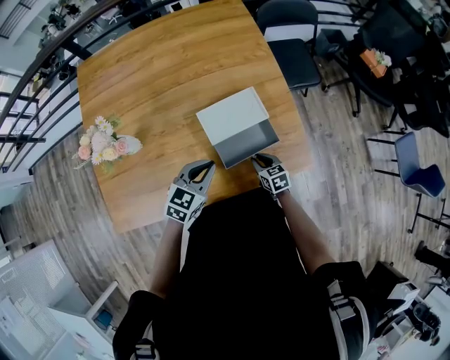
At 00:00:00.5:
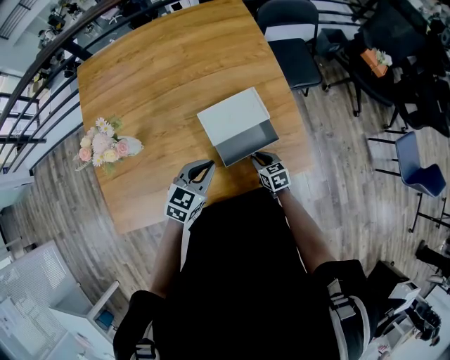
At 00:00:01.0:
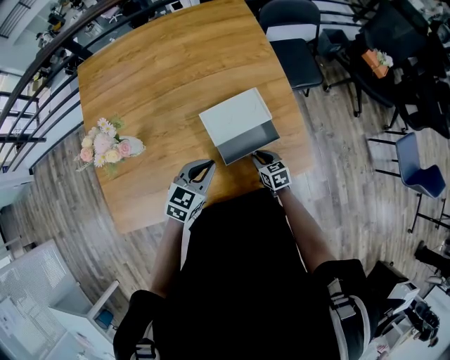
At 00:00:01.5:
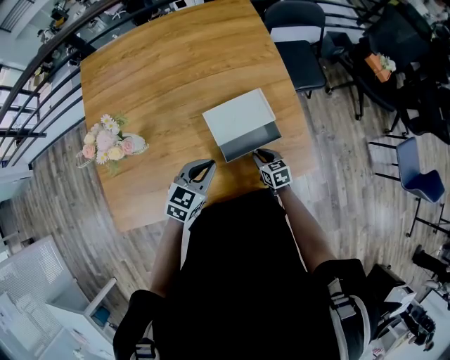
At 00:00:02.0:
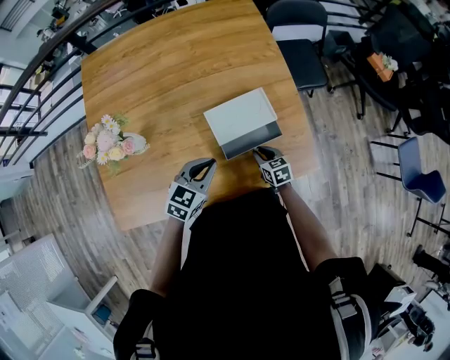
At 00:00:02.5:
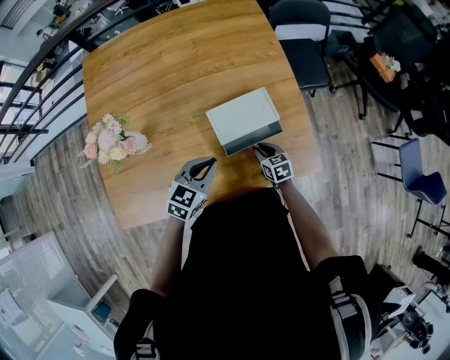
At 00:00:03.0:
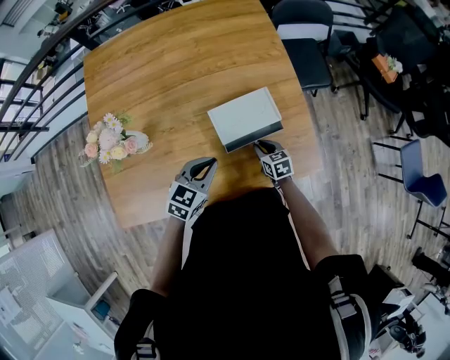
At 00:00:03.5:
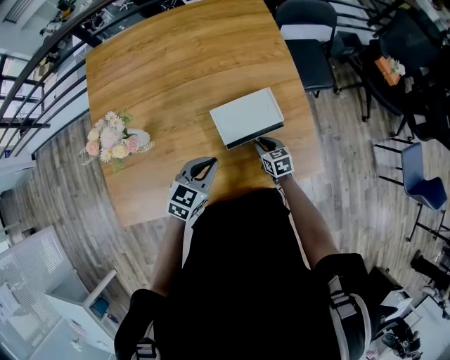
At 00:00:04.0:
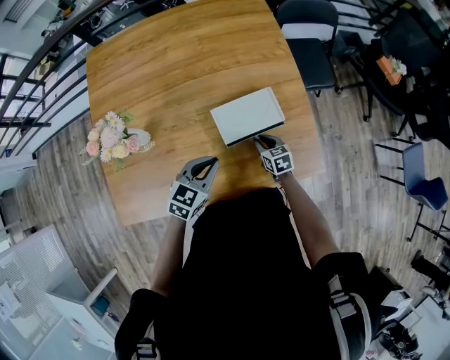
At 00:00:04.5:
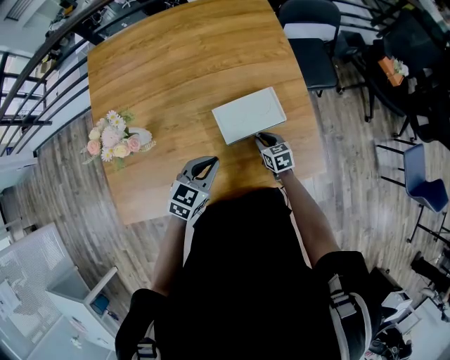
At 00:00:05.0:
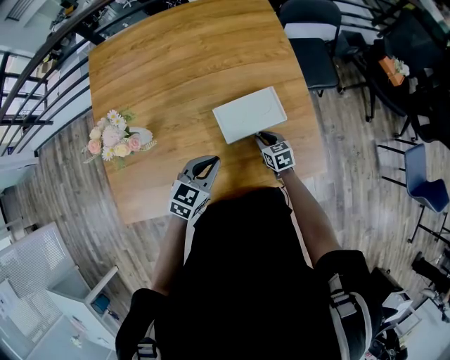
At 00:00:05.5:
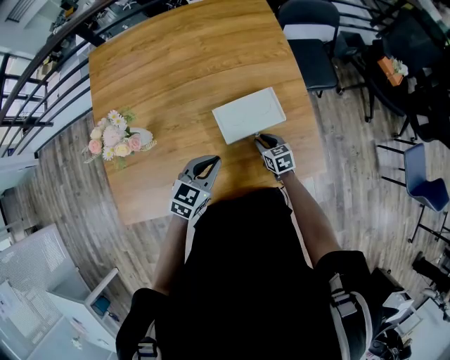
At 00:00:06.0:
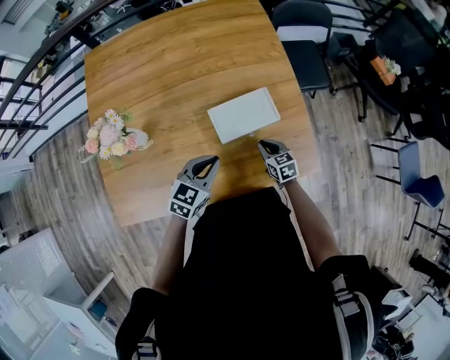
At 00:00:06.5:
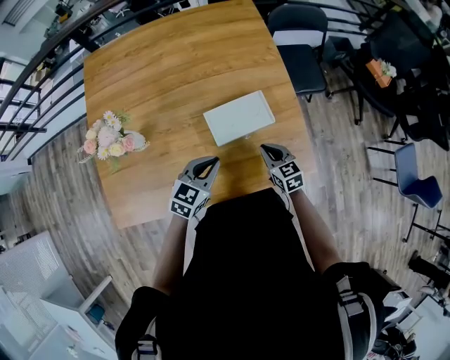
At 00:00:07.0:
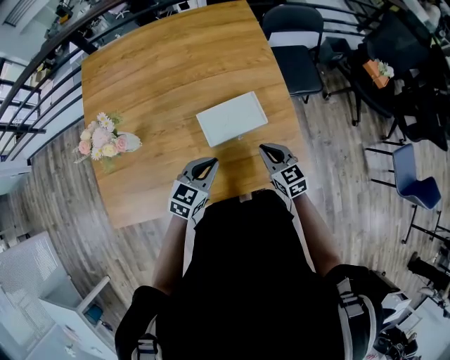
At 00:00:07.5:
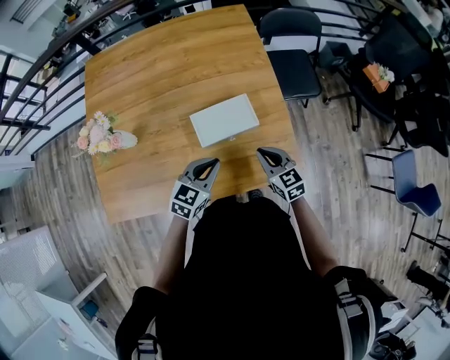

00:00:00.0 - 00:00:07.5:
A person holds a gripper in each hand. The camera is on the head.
00:00:00.0 - 00:00:02.0: There are only small adjustments of the grippers.
00:00:02.0 - 00:00:04.0: The right gripper shifts by approximately 5 cm.
00:00:04.0 - 00:00:05.5: Both grippers stay put.
00:00:05.5 - 00:00:07.5: The right gripper is displaced upward and to the right by about 20 cm, rotates some 20 degrees, and closes, while the left gripper moves to the right, roughly 10 cm.

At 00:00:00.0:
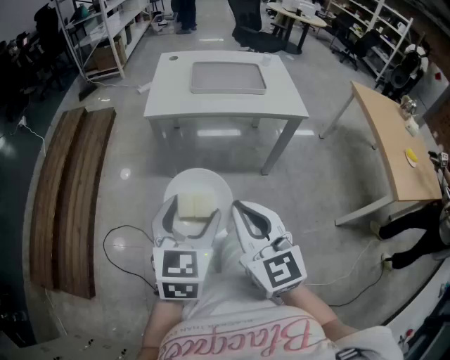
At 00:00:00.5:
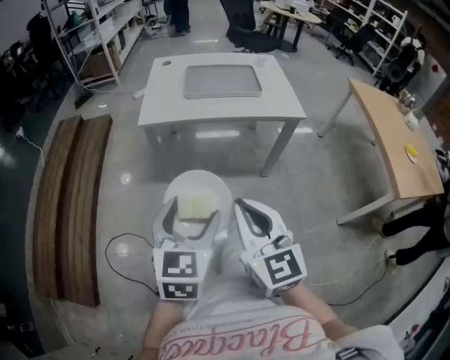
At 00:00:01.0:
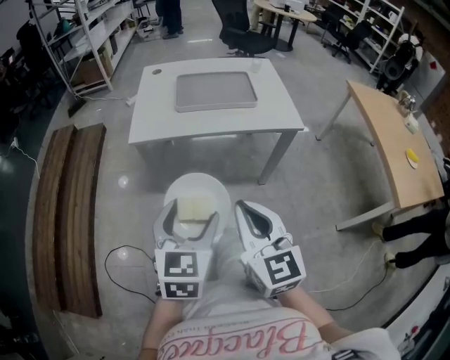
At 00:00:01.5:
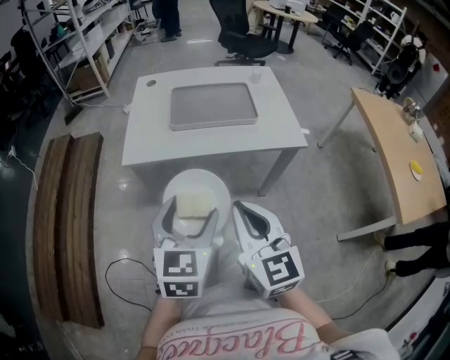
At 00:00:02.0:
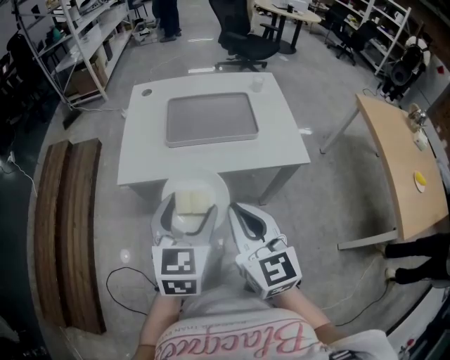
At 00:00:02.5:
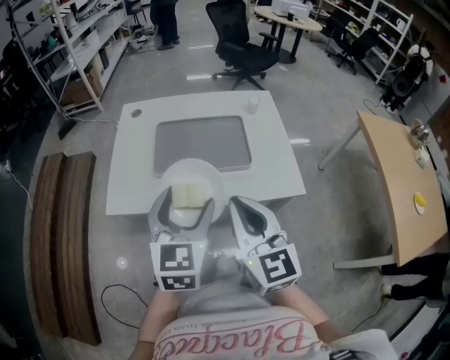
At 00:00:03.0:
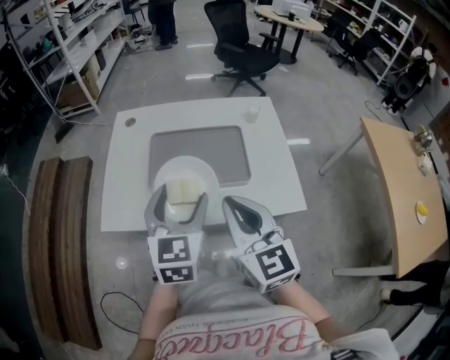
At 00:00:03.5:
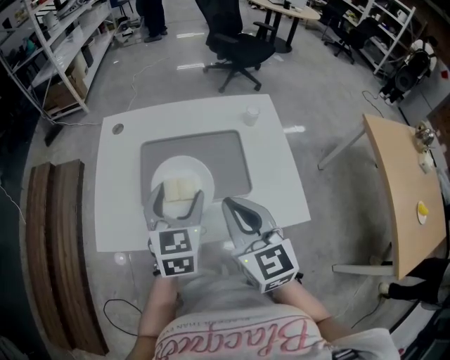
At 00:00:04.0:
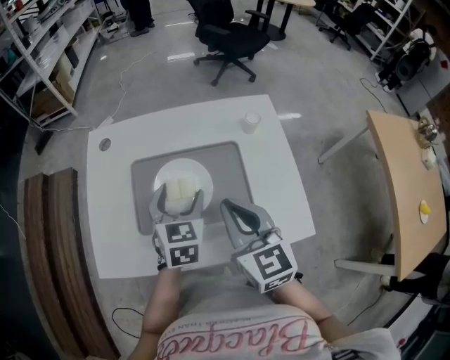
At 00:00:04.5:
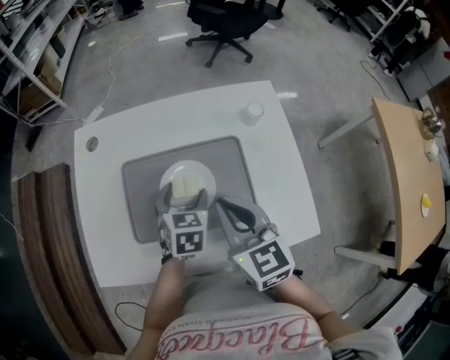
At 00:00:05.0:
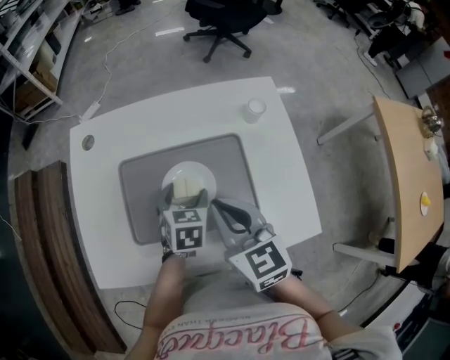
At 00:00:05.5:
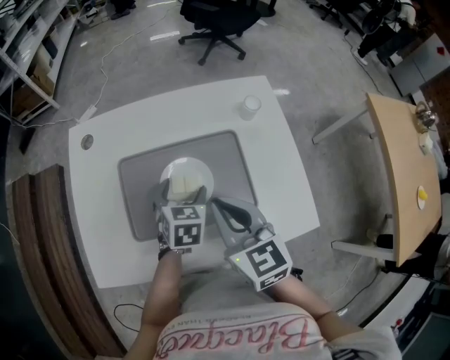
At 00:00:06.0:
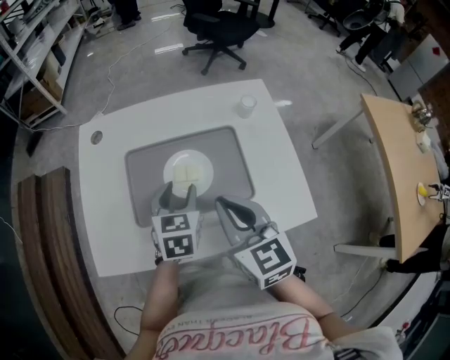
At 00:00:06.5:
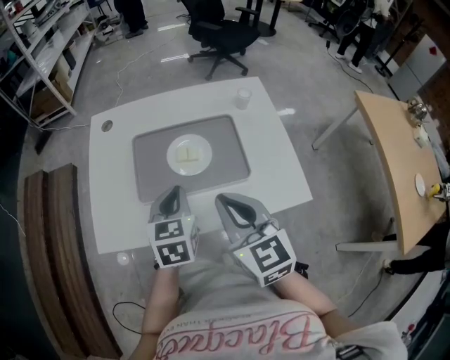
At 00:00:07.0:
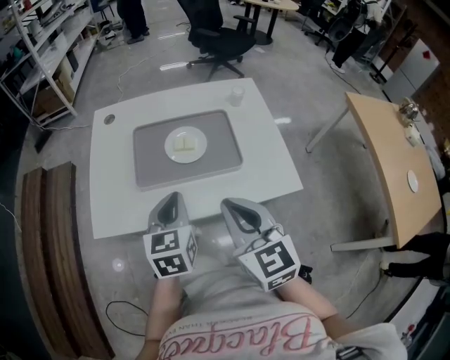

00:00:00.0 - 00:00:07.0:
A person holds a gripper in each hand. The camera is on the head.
00:00:00.0 - 00:00:02.0: The two grippers go some 20 cm forward.
00:00:02.0 - 00:00:03.5: The grippers both shift forward by about 20 cm.
00:00:03.5 - 00:00:05.0: The left gripper goes approximately 20 cm downward and forward, and swivels about 30 degrees; the right gripper heads forward and downward, covering some 10 cm.
00:00:05.0 - 00:00:07.0: The left gripper is displaced backward, upward and to the left by approximately 20 cm, changes its angle by some 20 degrees, and closes up. Meanwhile the right gripper shifts some 15 cm backward.

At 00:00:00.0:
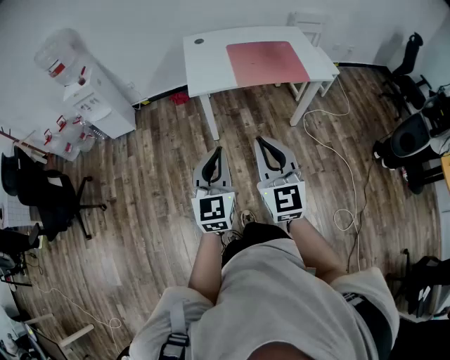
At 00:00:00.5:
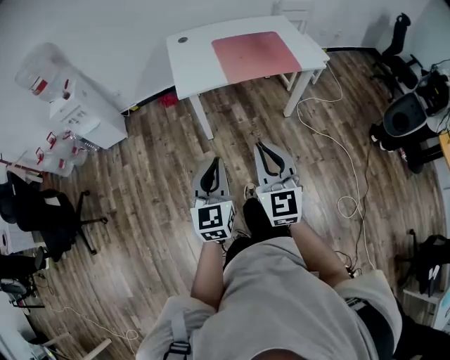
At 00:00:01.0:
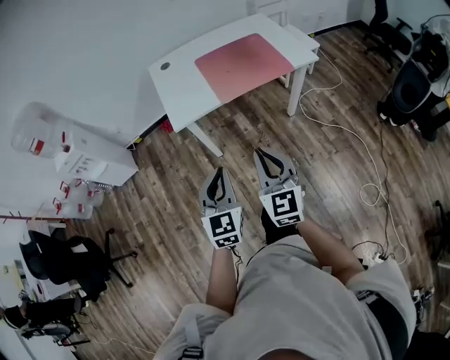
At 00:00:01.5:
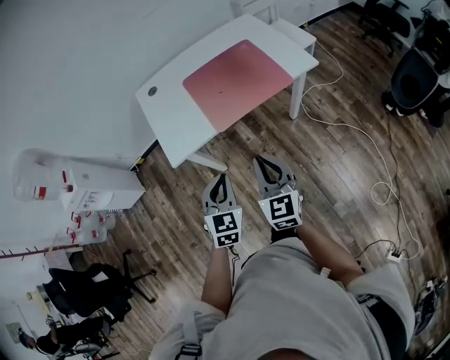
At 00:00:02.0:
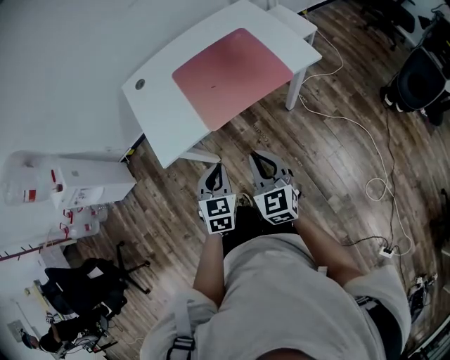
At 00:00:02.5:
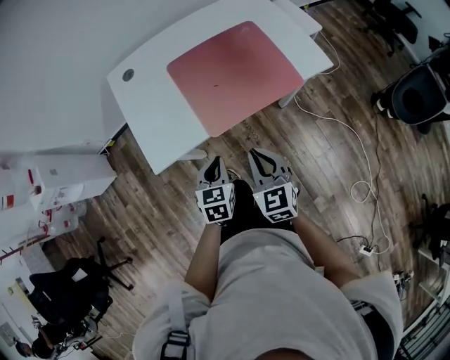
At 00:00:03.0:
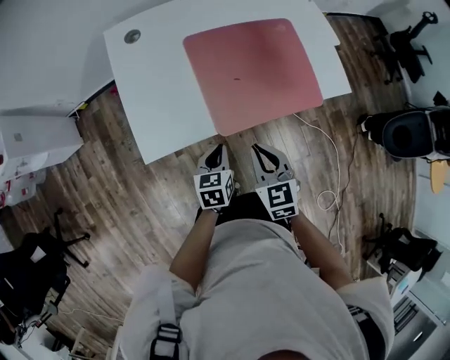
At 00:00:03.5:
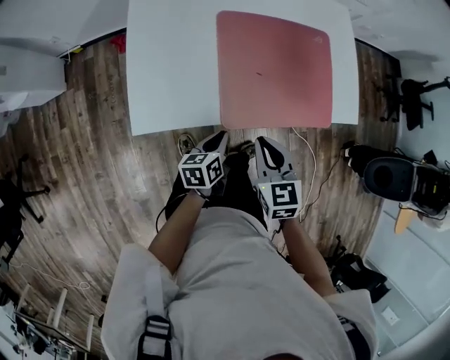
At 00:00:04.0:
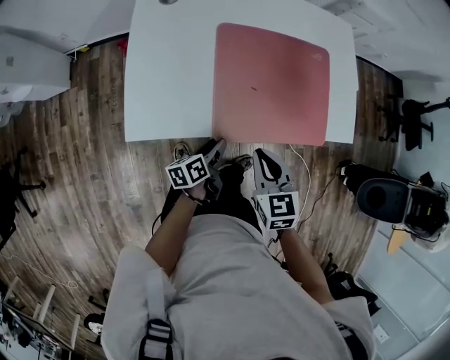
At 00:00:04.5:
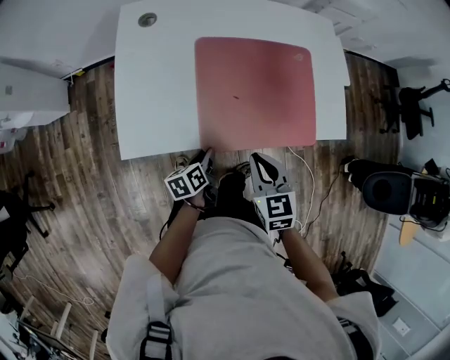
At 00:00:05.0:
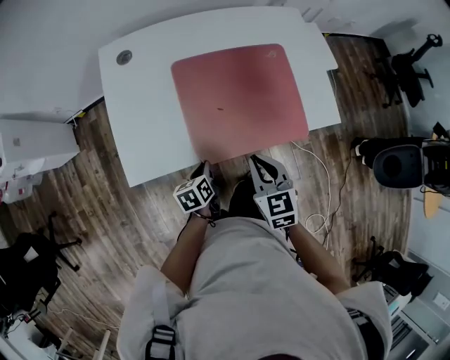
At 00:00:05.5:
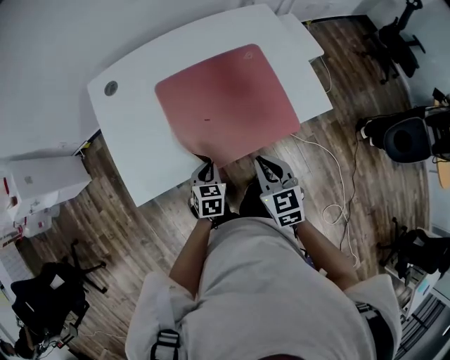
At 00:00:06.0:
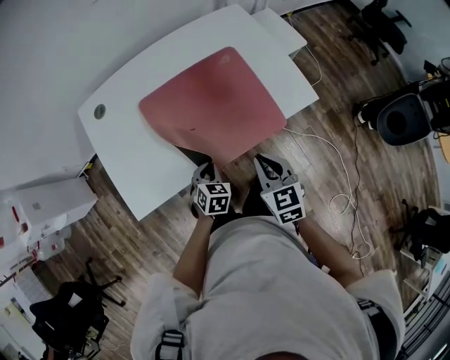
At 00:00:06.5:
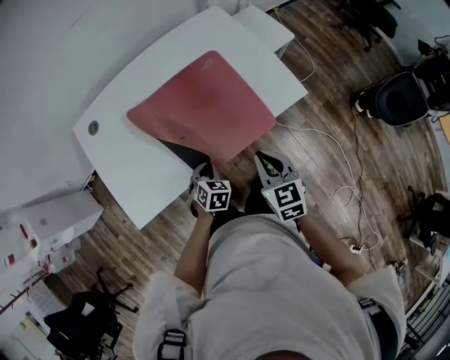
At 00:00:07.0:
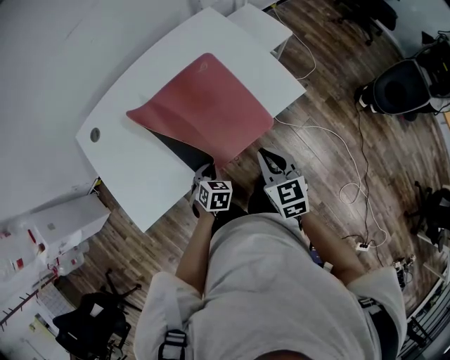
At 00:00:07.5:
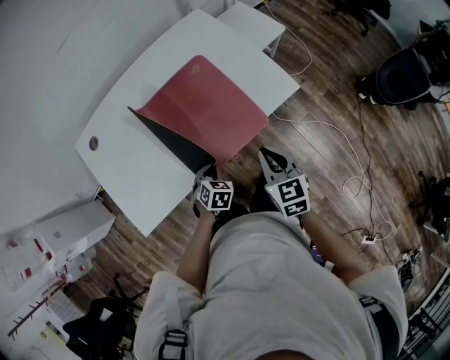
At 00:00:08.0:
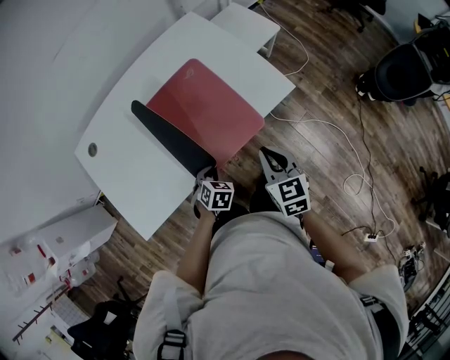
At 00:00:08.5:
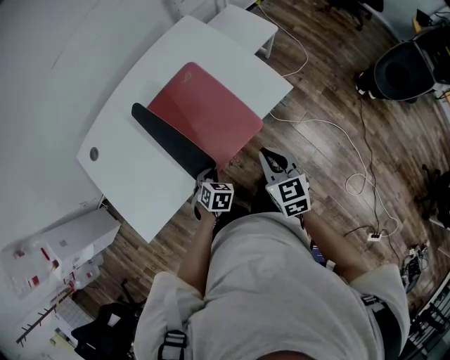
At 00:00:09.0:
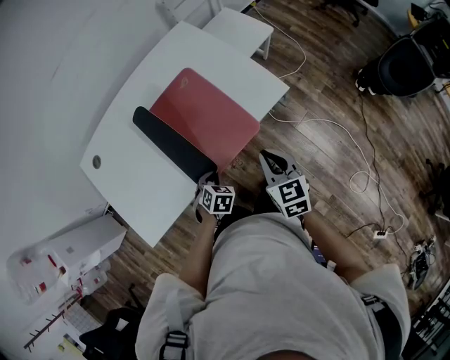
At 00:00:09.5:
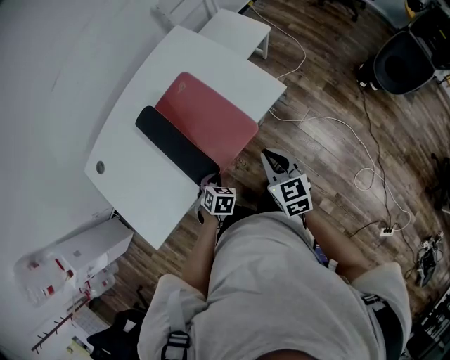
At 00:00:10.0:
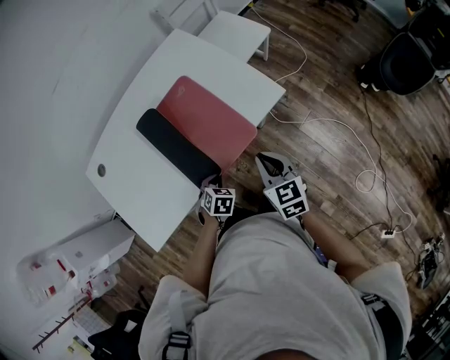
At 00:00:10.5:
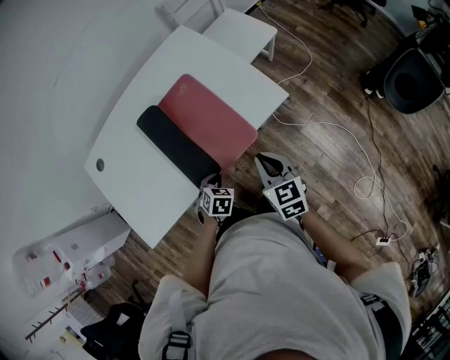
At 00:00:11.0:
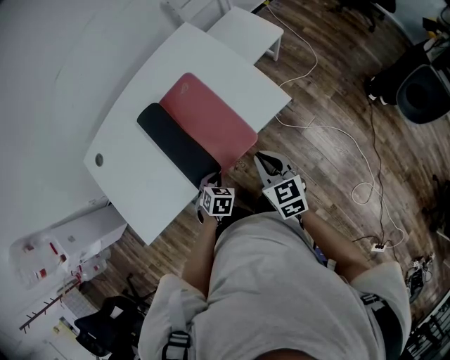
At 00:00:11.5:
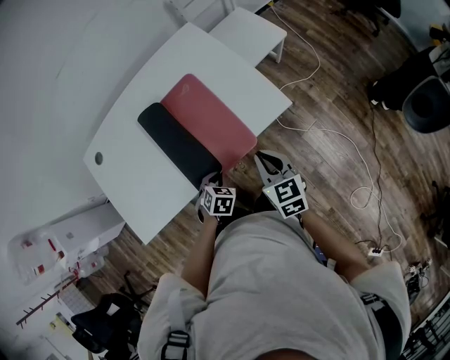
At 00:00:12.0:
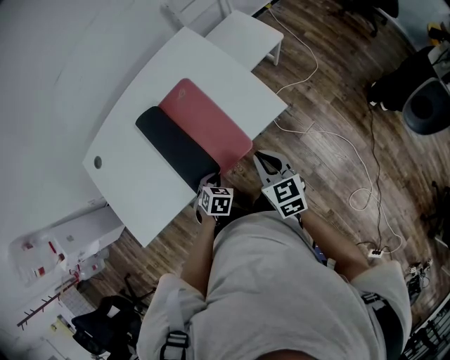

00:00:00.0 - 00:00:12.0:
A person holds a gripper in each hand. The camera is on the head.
00:00:00.0 - 00:00:02.0: Both grippers travel together forward and downward, roughly 35 cm. The right gripper swivels roughly 20 degrees. The left gripper tips its fingers downward by approximately 30 degrees.
00:00:02.0 - 00:00:04.0: The left gripper goes roughly 25 cm downward and forward, twists about 80 degrees counterclockwise, seen from behind, and opens its fingers; the right gripper goes roughly 20 cm forward and downward, and turns by roughly 30 degrees.
00:00:04.0 - 00:00:06.0: The left gripper heads to the right, covering roughly 10 cm, rotates around the line of its fingers by about 80 degrees, clockwise from behind, and closes up, while the right gripper heads to the right, covering roughly 15 cm.
00:00:06.0 - 00:00:08.0: The two grippers go roughly 10 cm to the right.
00:00:08.0 - 00:00:10.0: There are only small adjustments of the grippers.
00:00:10.0 - 00:00:12.0: The left gripper shifts by approximately 5 cm. Meanwhile the right gripper shifts by roughly 5 cm.
